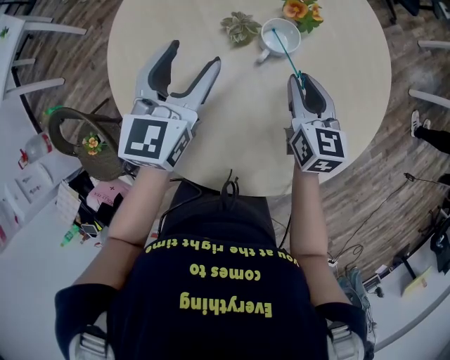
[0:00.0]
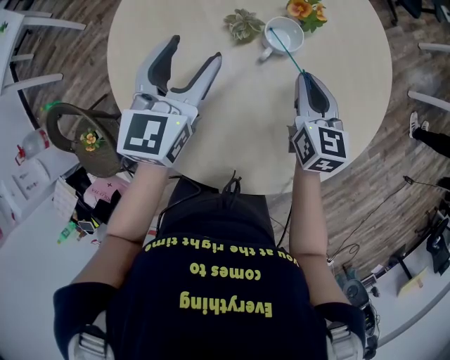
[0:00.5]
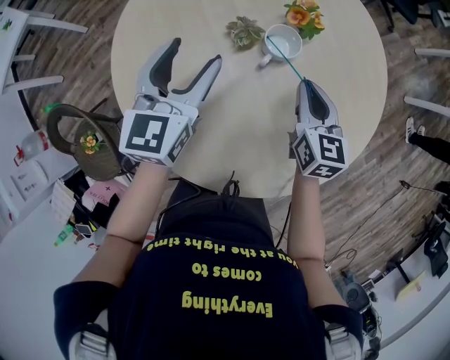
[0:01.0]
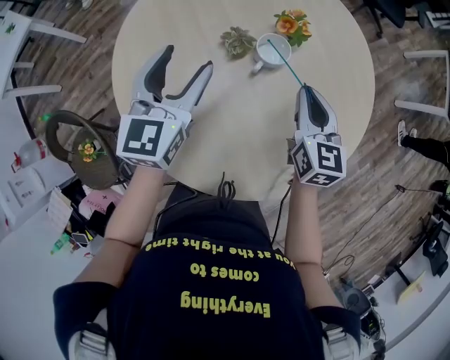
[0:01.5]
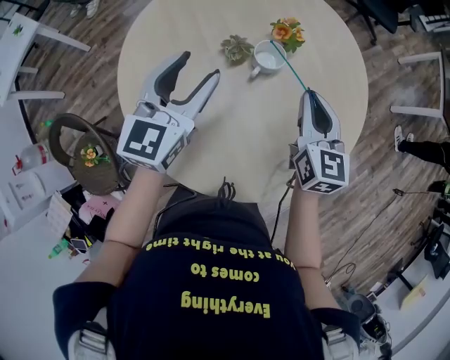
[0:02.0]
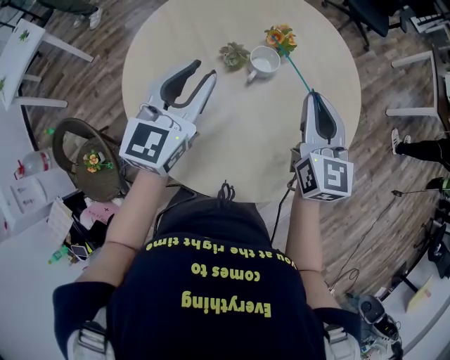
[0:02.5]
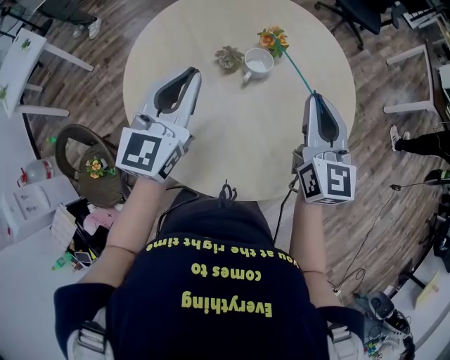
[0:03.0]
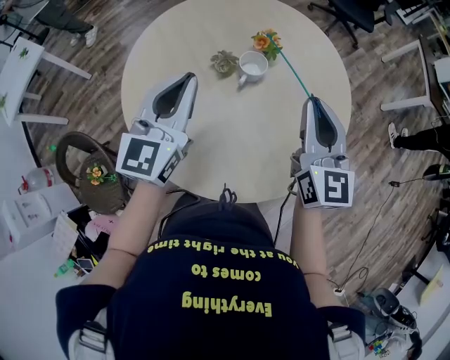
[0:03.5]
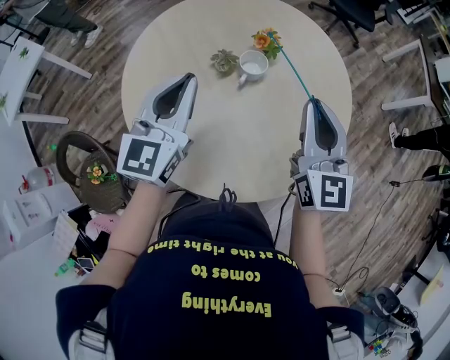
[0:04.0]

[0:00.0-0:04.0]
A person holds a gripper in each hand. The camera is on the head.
0:00.0 to 0:02.0: The left gripper moves upward, some 5 cm; the right gripper shifts some 10 cm upward.
0:02.0 to 0:04.0: The left gripper moves upward and backward, approximately 10 cm, and closes, while the right gripper shifts about 15 cm upward and backward.

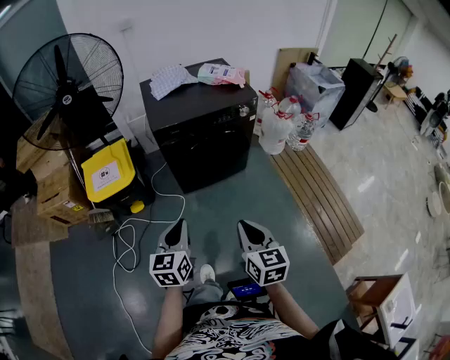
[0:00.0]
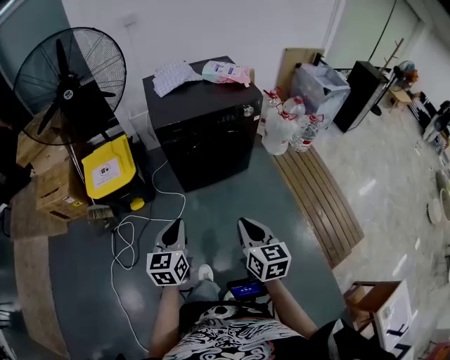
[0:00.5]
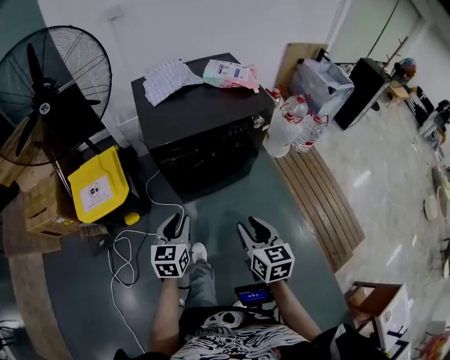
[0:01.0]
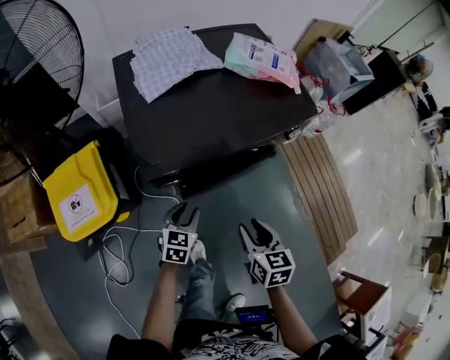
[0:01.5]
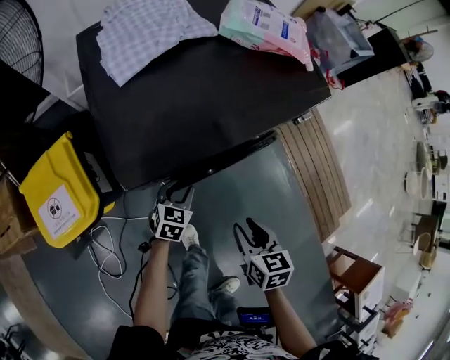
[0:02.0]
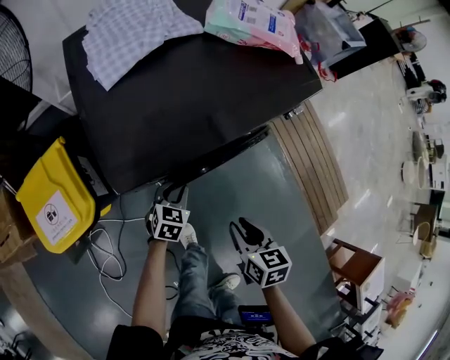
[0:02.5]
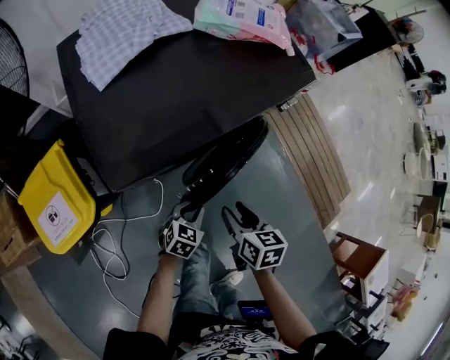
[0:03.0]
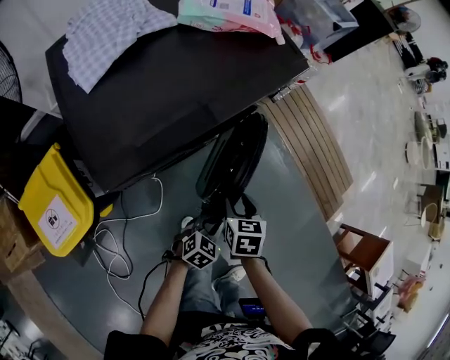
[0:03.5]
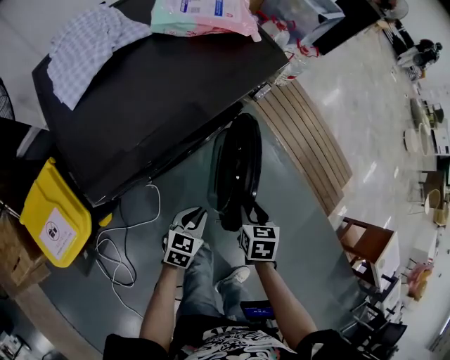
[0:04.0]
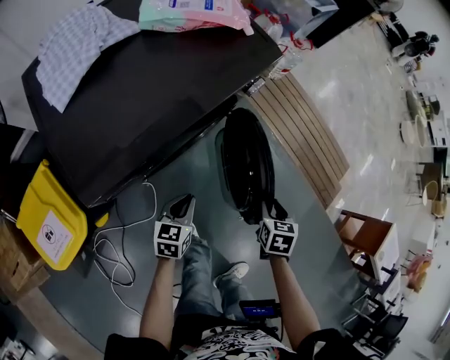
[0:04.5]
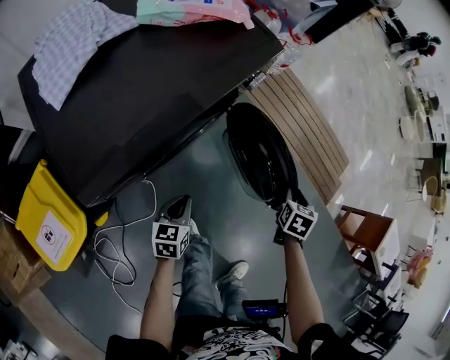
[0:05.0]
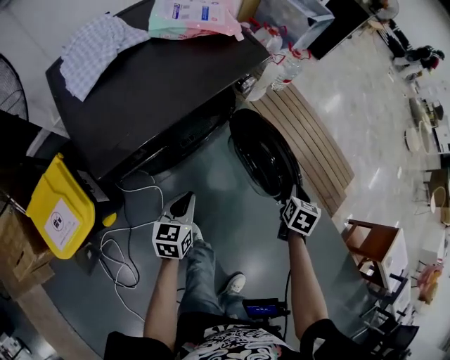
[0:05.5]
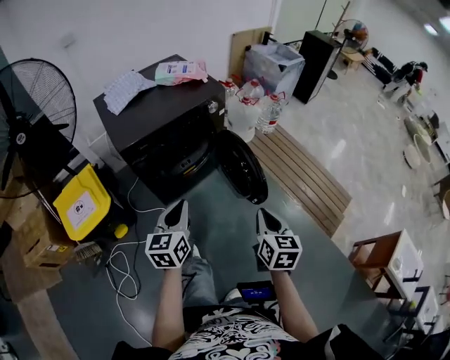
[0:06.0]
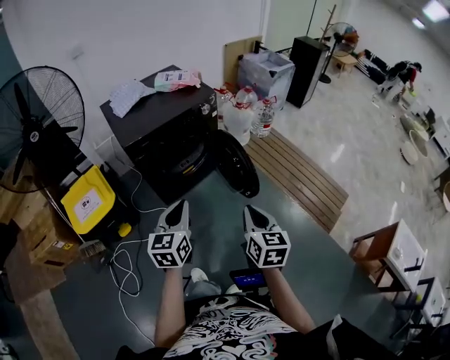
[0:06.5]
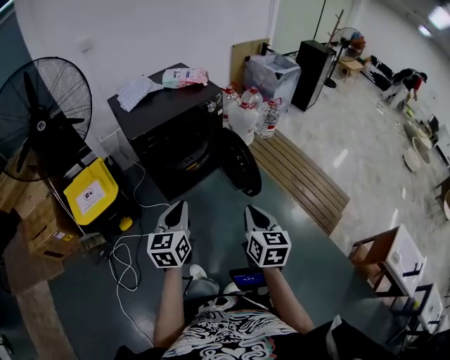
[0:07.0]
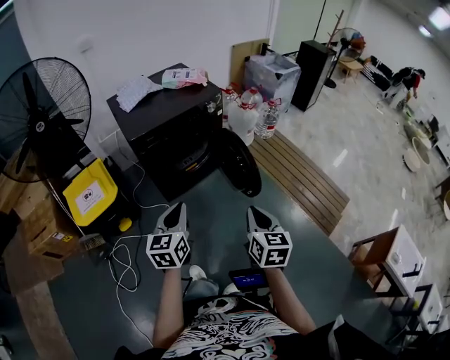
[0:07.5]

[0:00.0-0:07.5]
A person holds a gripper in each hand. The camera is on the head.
0:00.0 to 0:02.0: Both grippers travel together forward and downward, about 50 cm. The left gripper rotates some 40 degrees, and opens its fingers; the right gripper swivels roughly 30 degrees, and opens its fingers.
0:02.0 to 0:04.0: The right gripper shifts by about 15 cm, and swivels some 20 degrees. The left gripper changes place by about 15 cm, and closes.
0:04.0 to 0:05.5: The left gripper goes approximately 5 cm upward; the right gripper shifts roughly 20 cm to the right and forward, changes its angle by some 20 degrees, and closes up.
0:05.5 to 0:07.5: The left gripper shifts by about 40 cm, and changes its angle by about 20 degrees, while the right gripper shifts by some 40 cm, and swivels approximately 40 degrees.

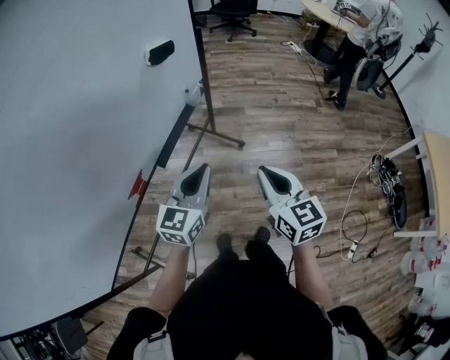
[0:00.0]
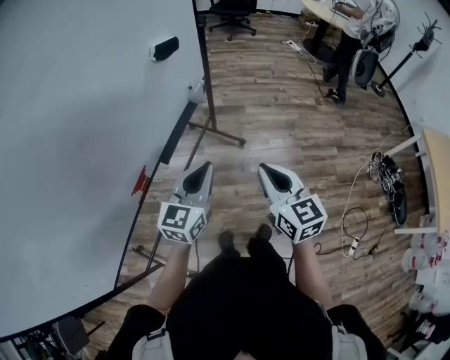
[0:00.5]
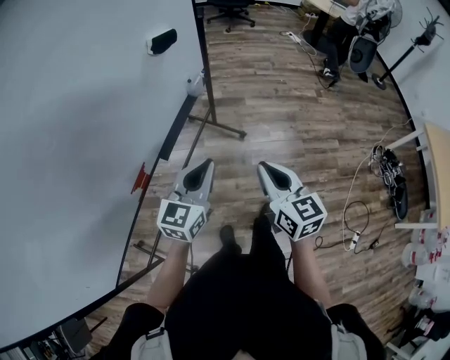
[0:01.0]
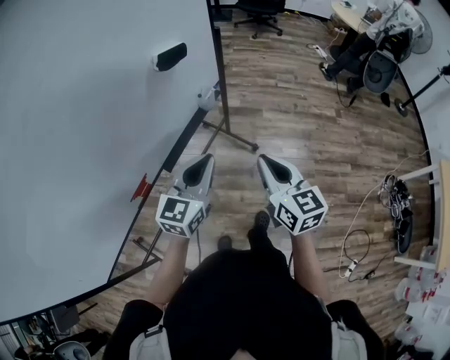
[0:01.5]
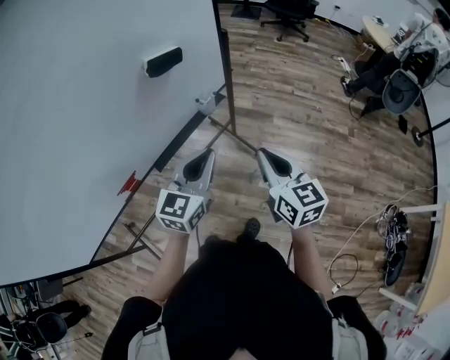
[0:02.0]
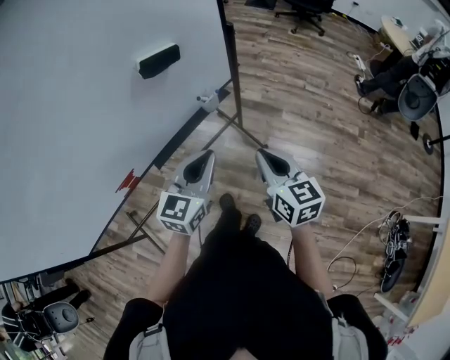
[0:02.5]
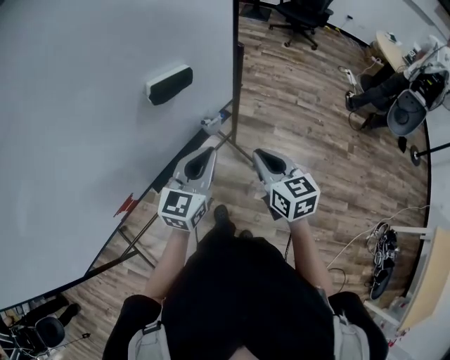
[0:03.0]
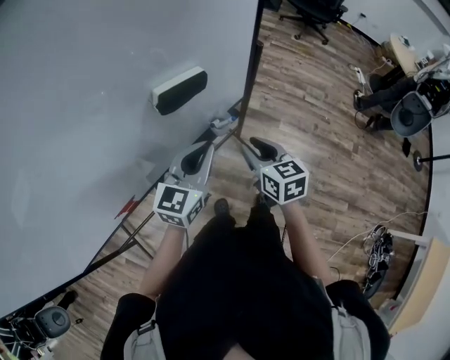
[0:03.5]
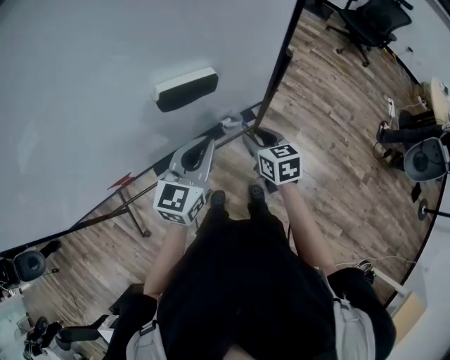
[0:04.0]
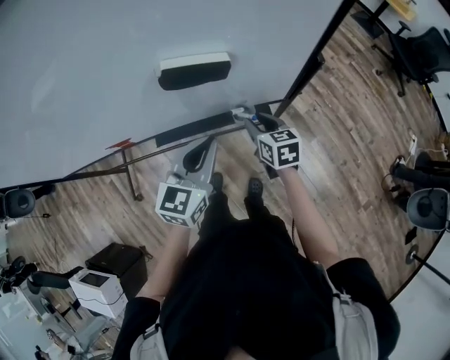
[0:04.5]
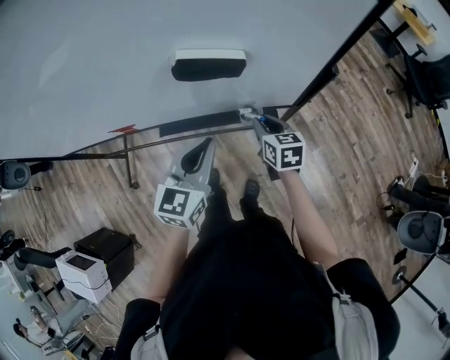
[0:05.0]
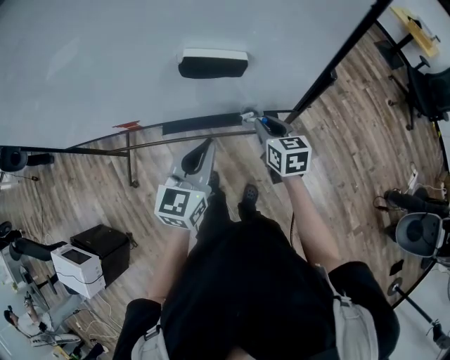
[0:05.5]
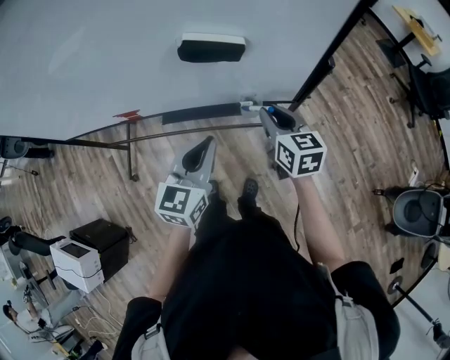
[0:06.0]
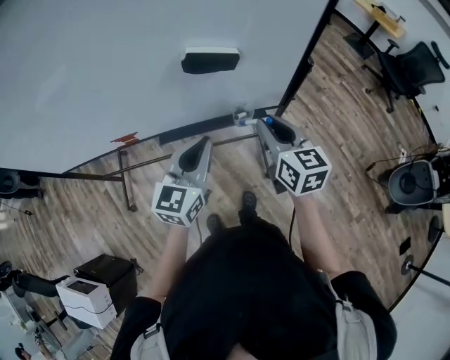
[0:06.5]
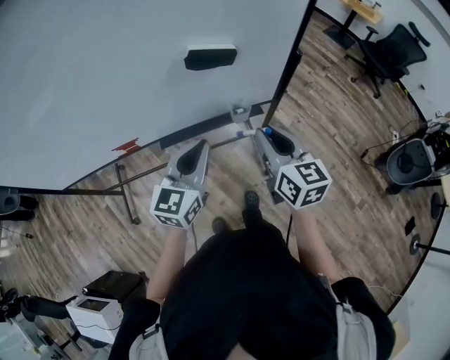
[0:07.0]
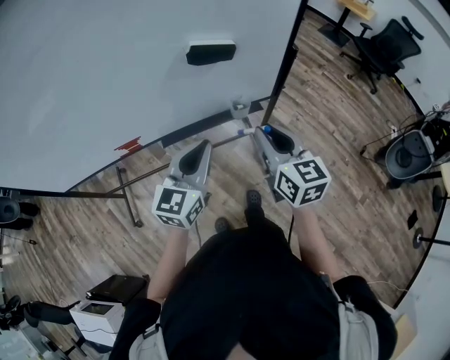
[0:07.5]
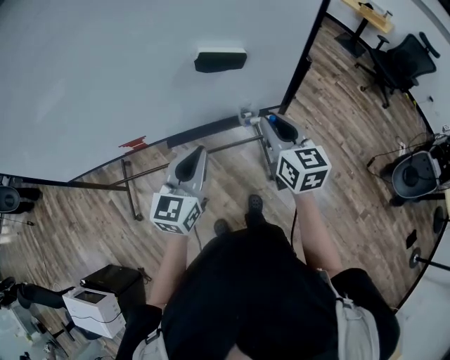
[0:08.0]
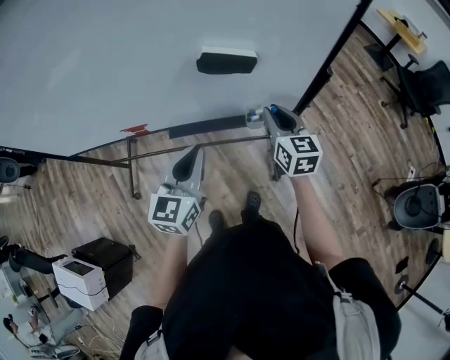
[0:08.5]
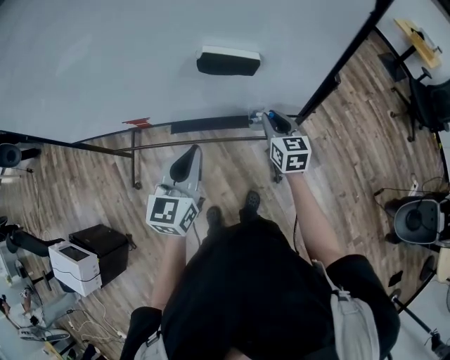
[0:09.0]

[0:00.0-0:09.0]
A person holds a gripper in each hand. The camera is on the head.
0:00.0 to 0:02.0: The right gripper travels forward by approximately 20 cm, while the left gripper moves forward and to the right, roughly 15 cm.
0:02.0 to 0:04.5: The right gripper ends up some 40 cm from where it was, changes its angle by approximately 40 degrees, and opens its fingers, while the left gripper changes place by roughly 20 cm, and rotates some 40 degrees.
0:04.5 to 0:07.0: The right gripper heads upward and backward, covering about 25 cm, and turns by some 20 degrees, while the left gripper is displaced backward and to the left by some 10 cm.
0:07.0 to 0:09.0: The right gripper goes about 20 cm forward and downward, while the left gripper changes its angle by some 20 degrees.

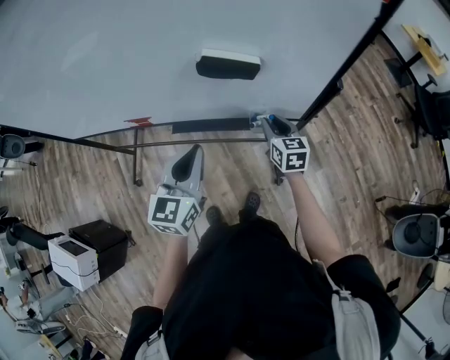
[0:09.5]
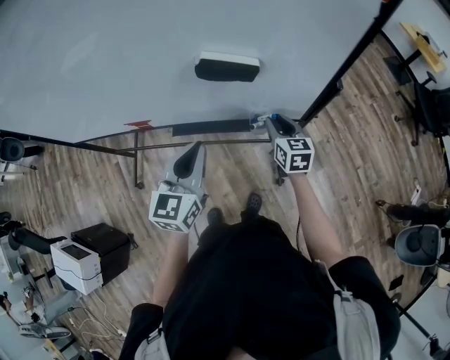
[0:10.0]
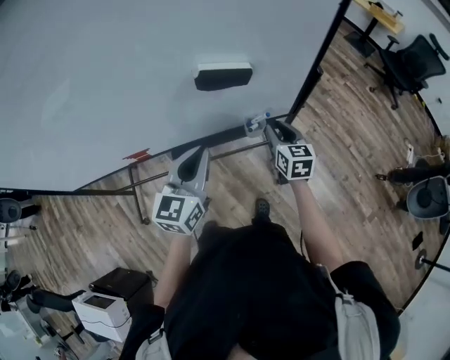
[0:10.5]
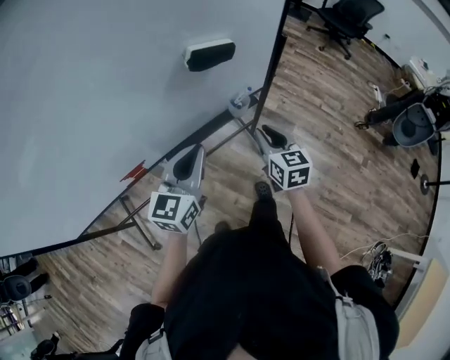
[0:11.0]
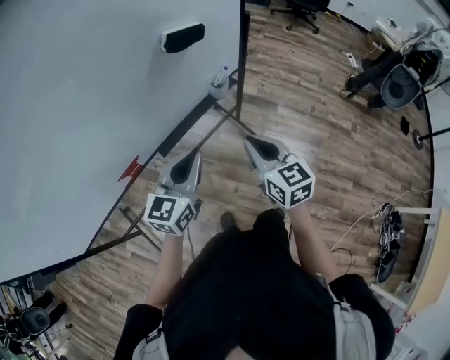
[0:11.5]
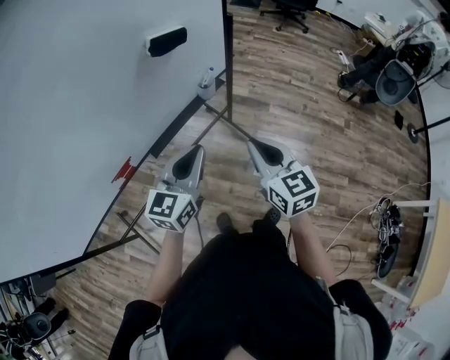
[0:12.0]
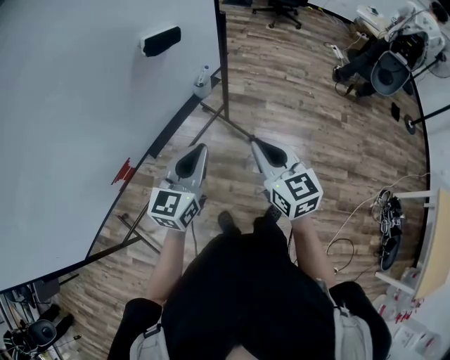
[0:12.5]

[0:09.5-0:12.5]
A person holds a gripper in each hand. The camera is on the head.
0:09.5 to 0:11.0: The left gripper changes place by about 5 cm, and rotates some 40 degrees. Meanwhile the right gripper moves some 15 cm, and changes its angle by approximately 30 degrees.
0:11.0 to 0:12.5: The left gripper moves backward and to the right, about 10 cm. The right gripper shifts approximately 20 cm backward and upward.

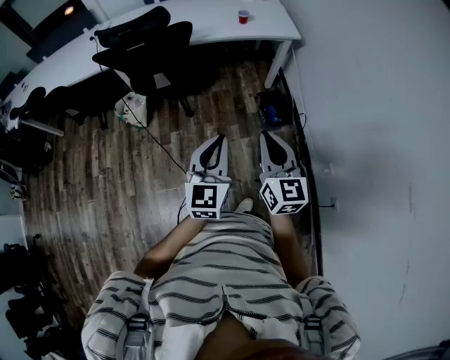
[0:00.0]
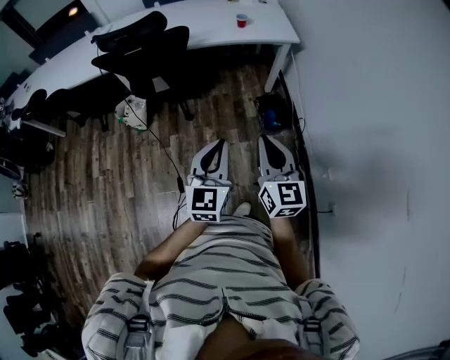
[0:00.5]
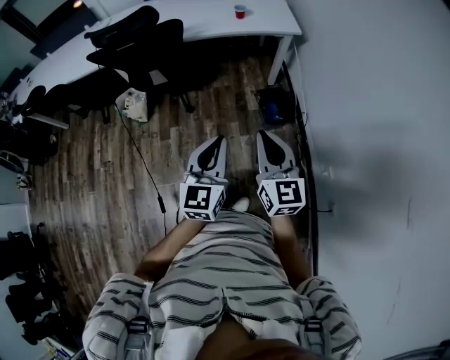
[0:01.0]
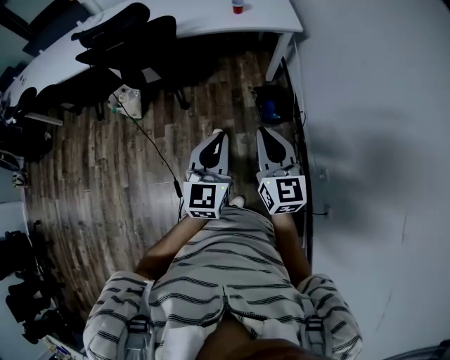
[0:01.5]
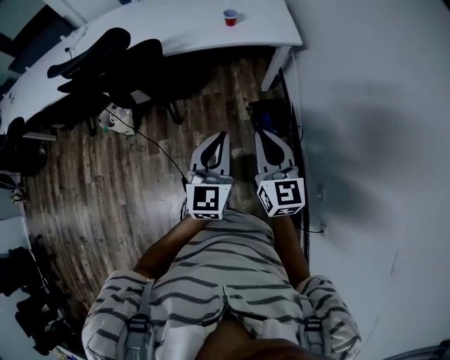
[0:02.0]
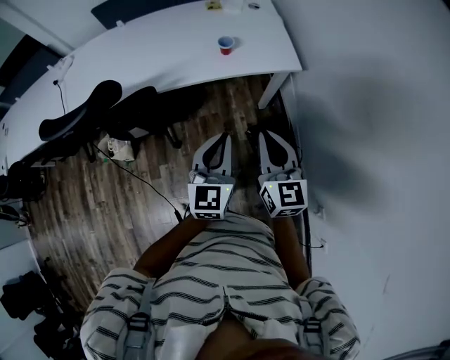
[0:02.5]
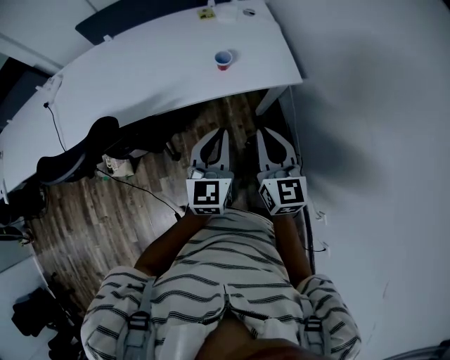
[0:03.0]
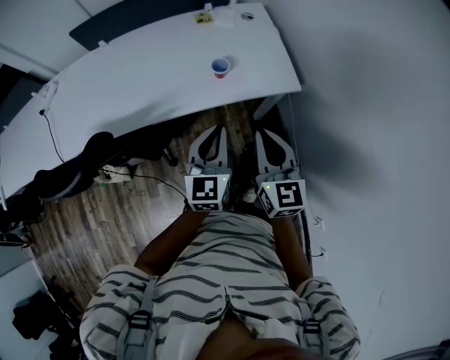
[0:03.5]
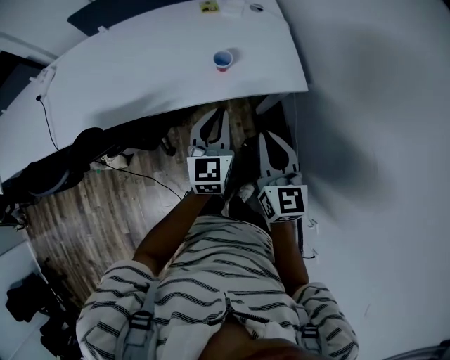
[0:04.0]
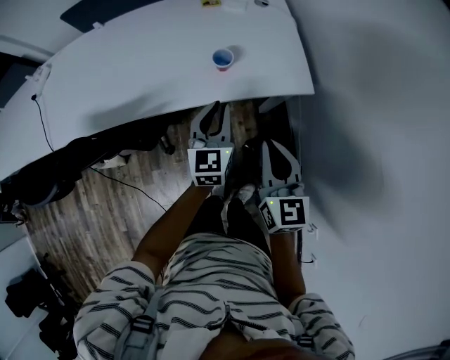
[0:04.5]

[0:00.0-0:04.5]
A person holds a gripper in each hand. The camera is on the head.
0:00.0 to 0:02.0: The grippers both shift forward and to the right by roughly 25 cm.
0:02.0 to 0:04.5: The grippers both shift forward by approximately 40 cm.
